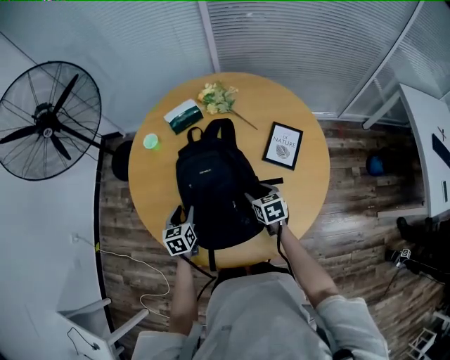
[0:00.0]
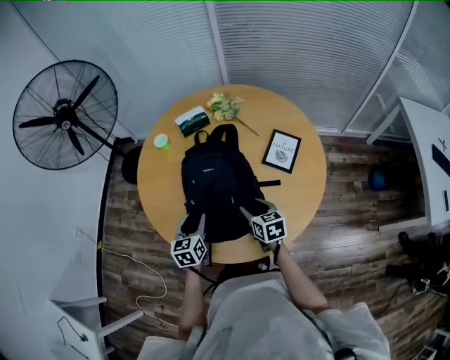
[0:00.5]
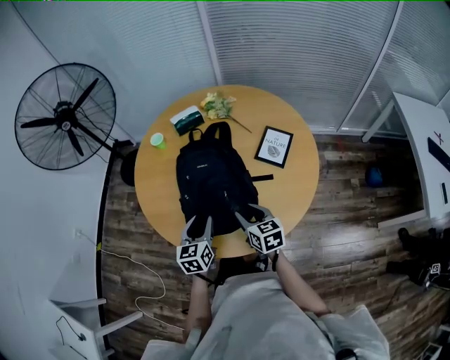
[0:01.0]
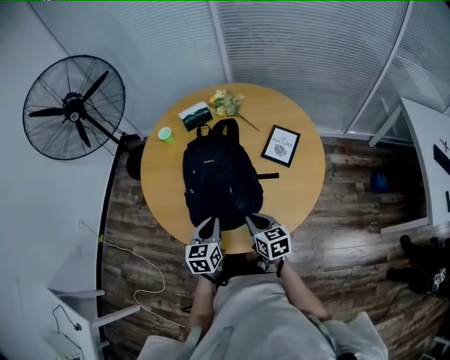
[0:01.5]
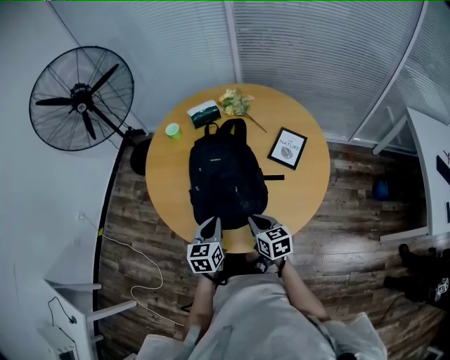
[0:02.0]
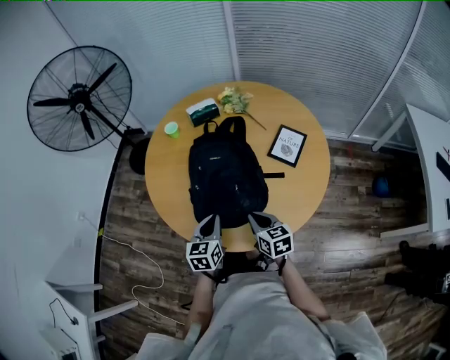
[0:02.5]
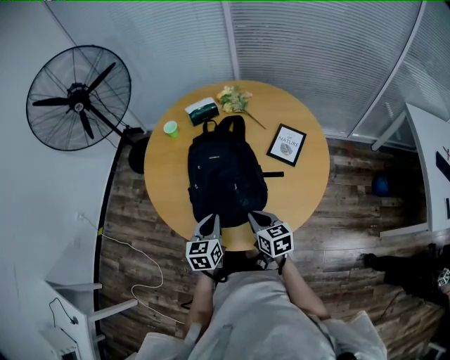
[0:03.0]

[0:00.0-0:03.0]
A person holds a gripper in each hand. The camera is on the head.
0:00.0 to 0:01.5: The left gripper moves backward, to the right and upward, about 20 cm, and closes up; the right gripper goes roughly 20 cm backward and upward, and closes its fingers.
0:01.5 to 0:03.0: The grippers stay close to where they were, moving slightly.

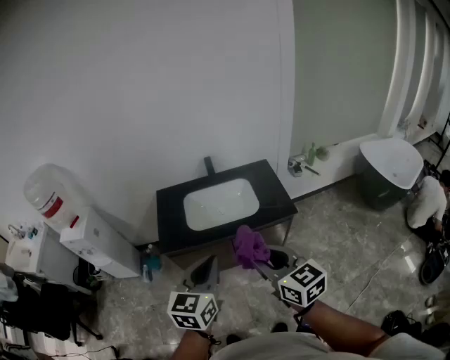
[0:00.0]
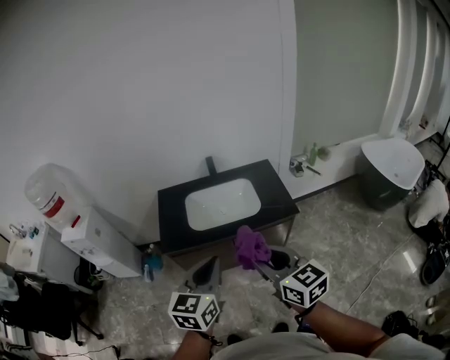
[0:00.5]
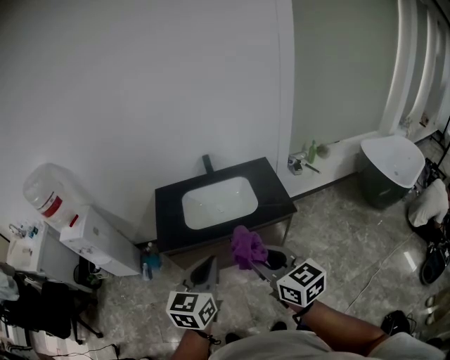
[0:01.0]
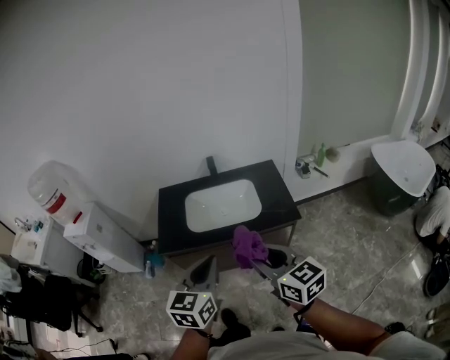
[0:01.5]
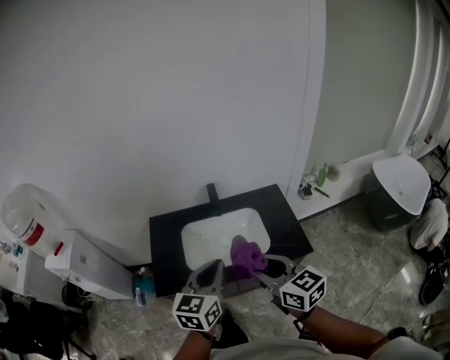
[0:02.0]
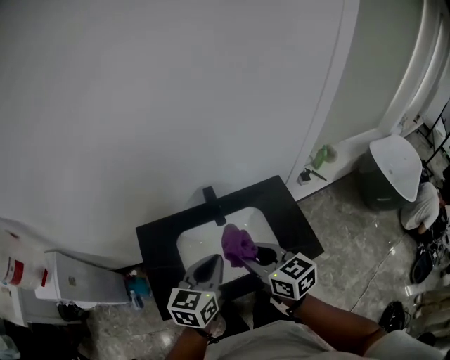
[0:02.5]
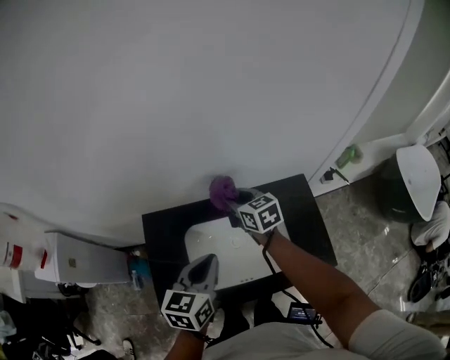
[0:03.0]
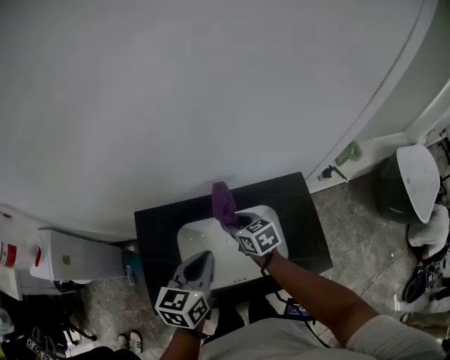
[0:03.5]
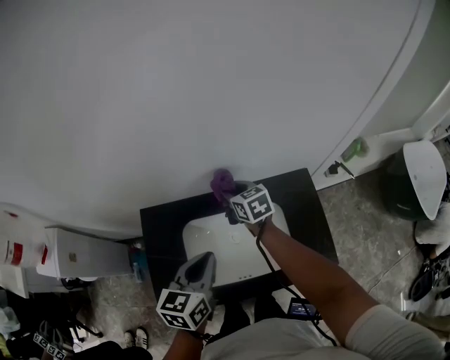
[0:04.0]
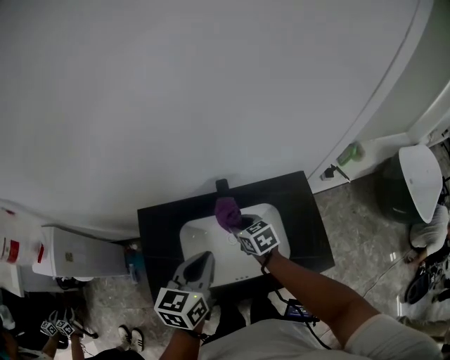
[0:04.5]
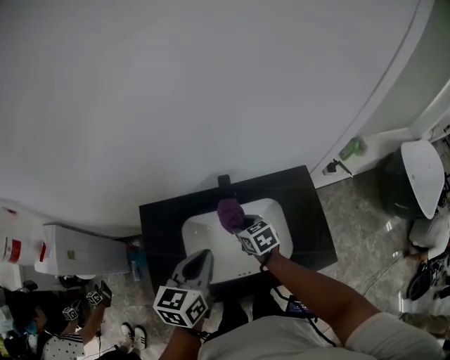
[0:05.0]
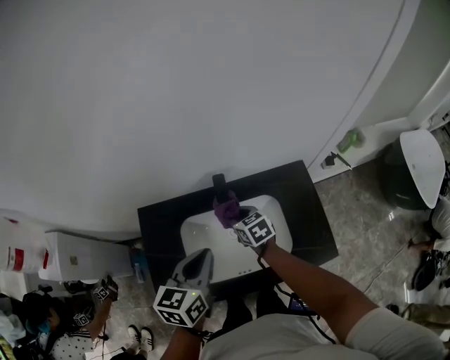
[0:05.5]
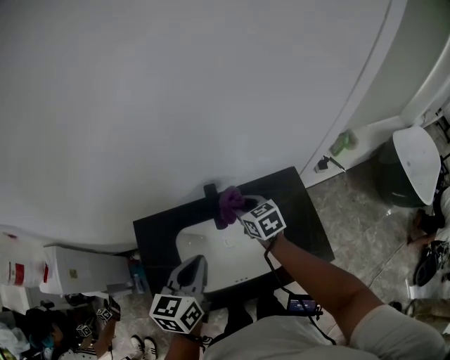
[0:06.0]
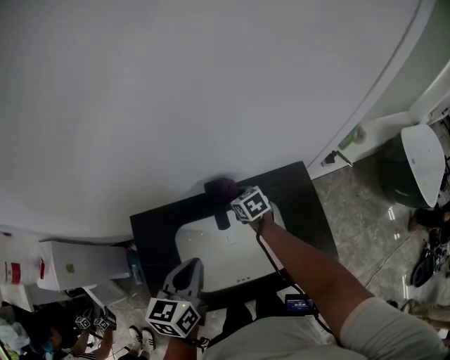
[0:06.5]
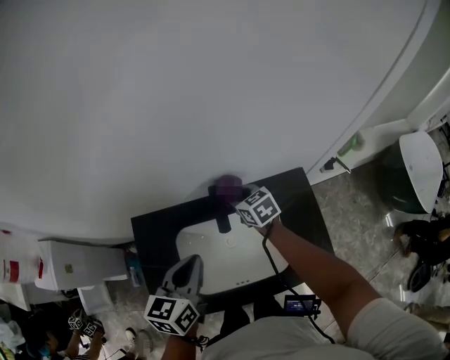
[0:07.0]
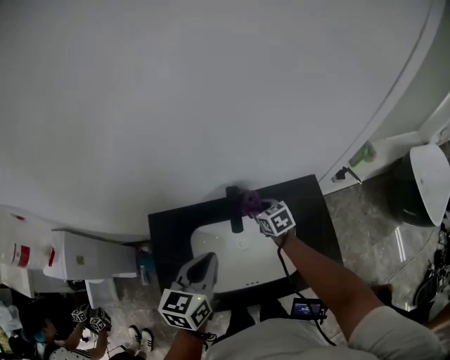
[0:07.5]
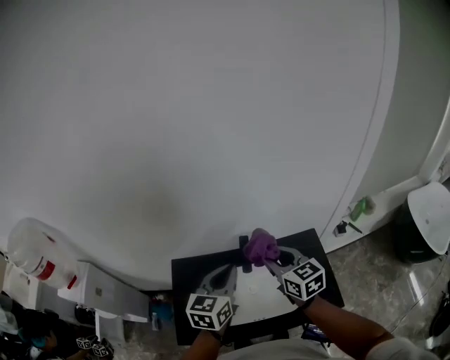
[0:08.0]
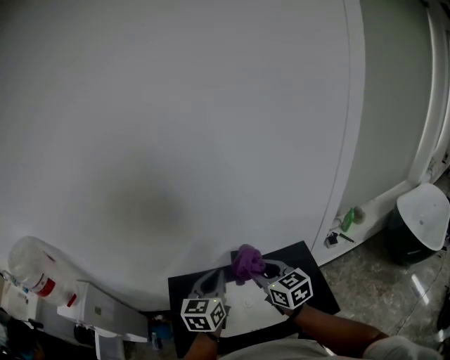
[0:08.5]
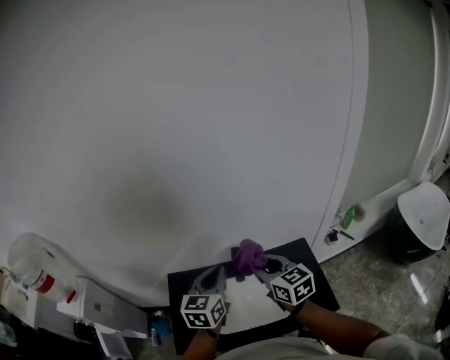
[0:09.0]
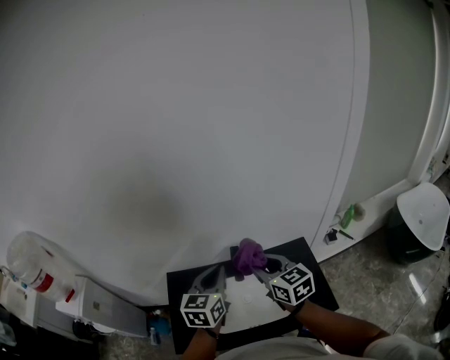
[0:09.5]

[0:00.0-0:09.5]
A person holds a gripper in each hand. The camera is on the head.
0:00.0 to 0:02.0: The two grippers go about 25 cm forward.
0:02.0 to 0:04.0: The left gripper shifts about 25 cm forward; the right gripper moves forward and backward over about 50 cm, changing direction 2 times, and swivels some 20 degrees.
0:04.0 to 0:05.5: The right gripper travels backward and downward by approximately 10 cm.
0:05.5 to 0:07.5: The right gripper goes up and down, roughly 10 cm each way, reversing 3 times.
0:07.5 to 0:09.5: The right gripper goes roughly 35 cm upward and backward, and swivels roughly 30 degrees. The left gripper shifts roughly 15 cm upward.

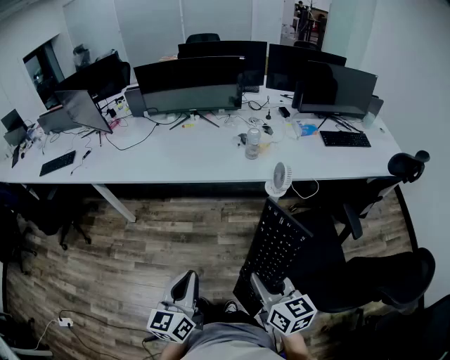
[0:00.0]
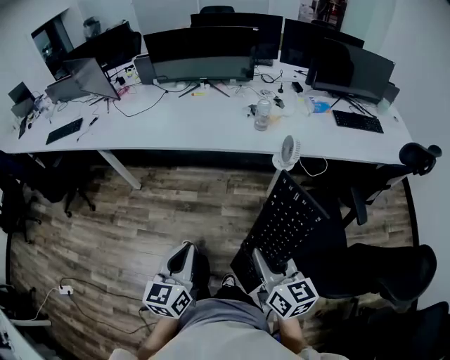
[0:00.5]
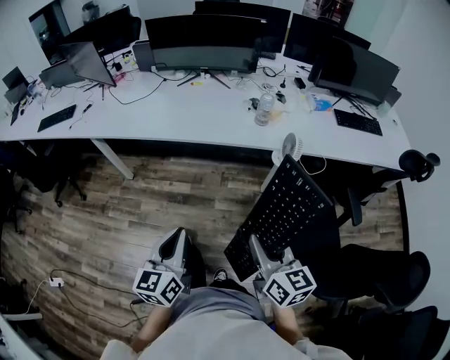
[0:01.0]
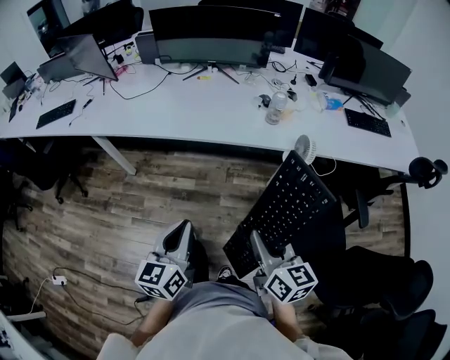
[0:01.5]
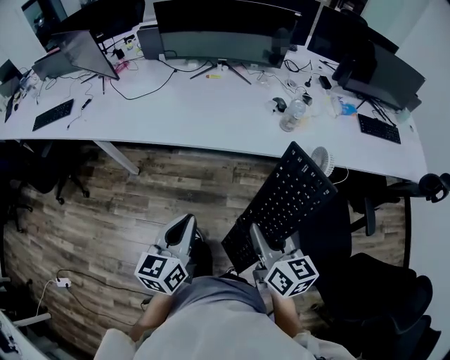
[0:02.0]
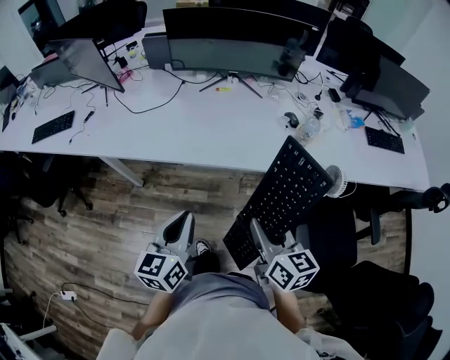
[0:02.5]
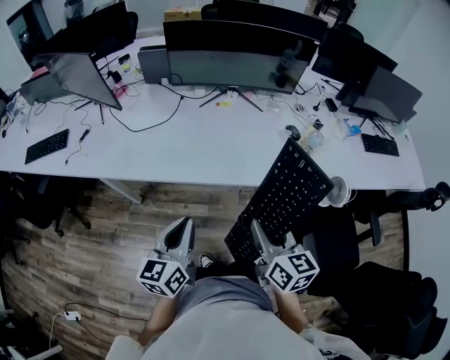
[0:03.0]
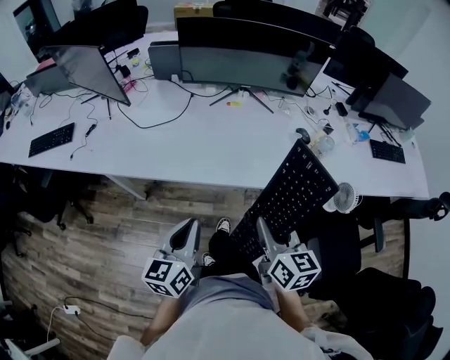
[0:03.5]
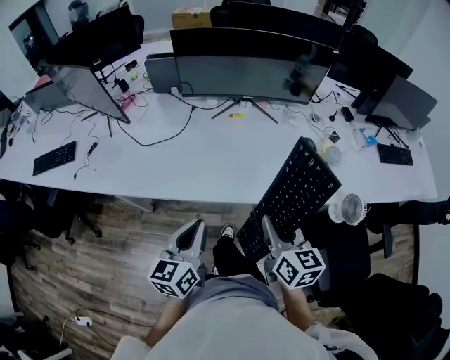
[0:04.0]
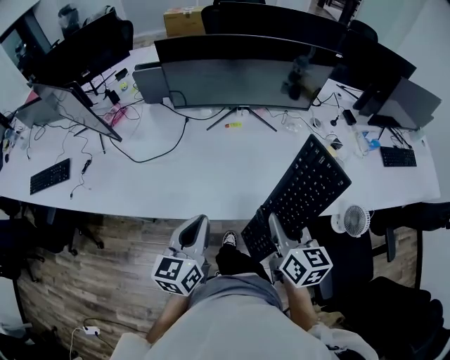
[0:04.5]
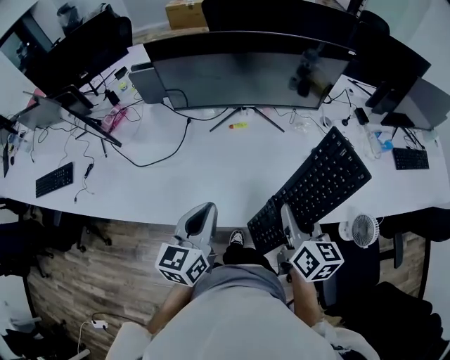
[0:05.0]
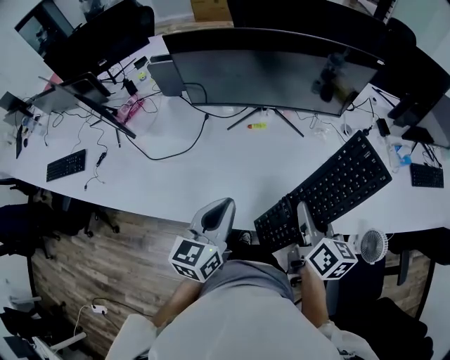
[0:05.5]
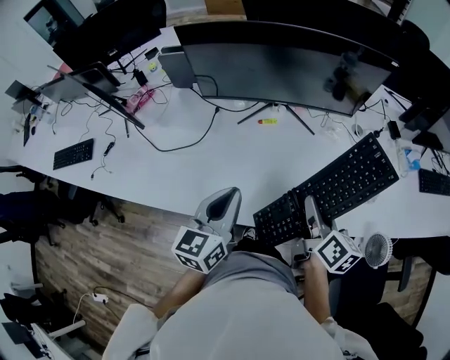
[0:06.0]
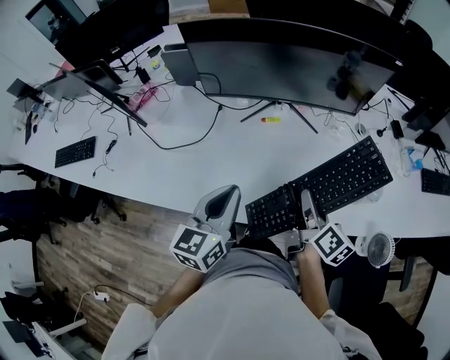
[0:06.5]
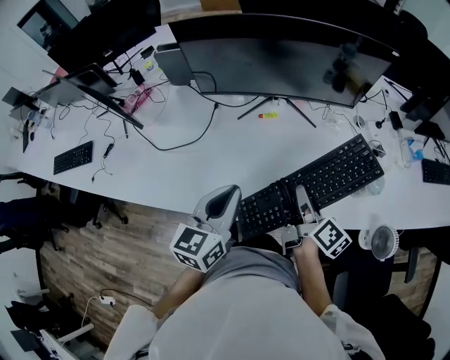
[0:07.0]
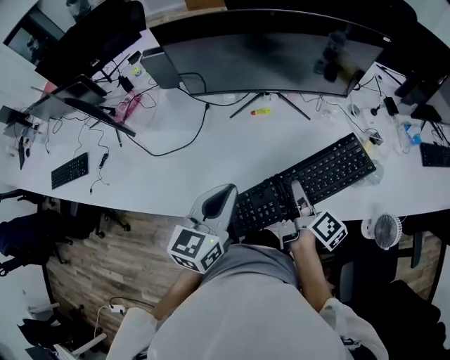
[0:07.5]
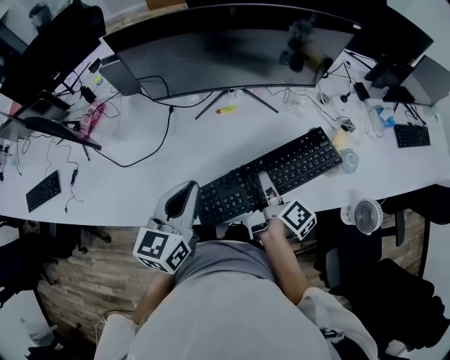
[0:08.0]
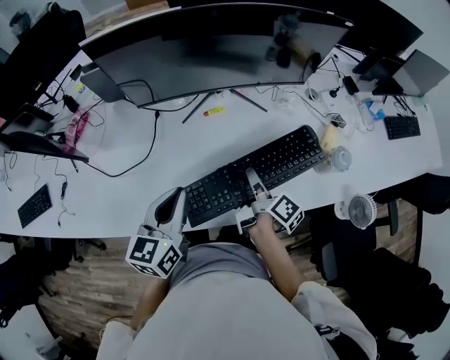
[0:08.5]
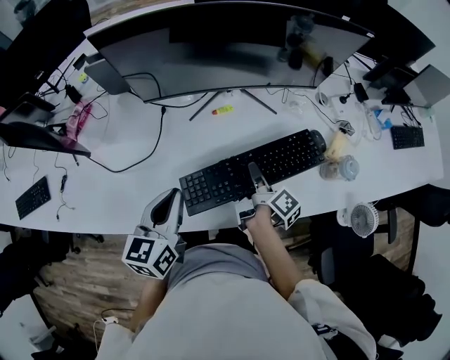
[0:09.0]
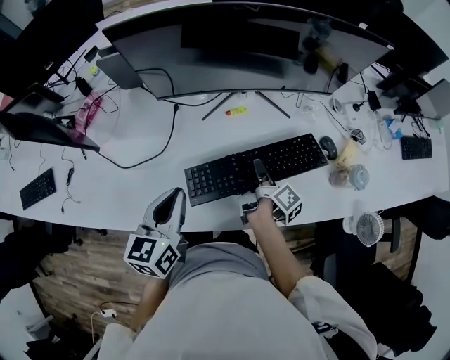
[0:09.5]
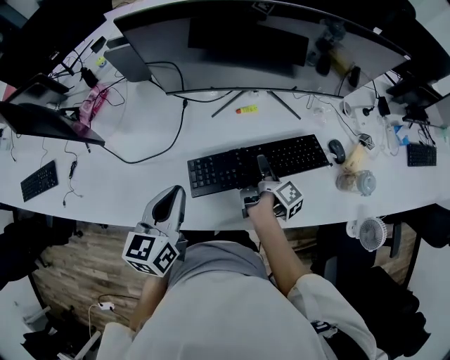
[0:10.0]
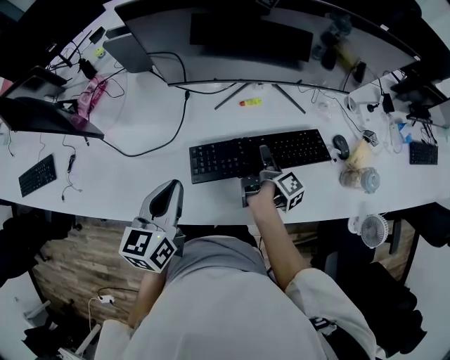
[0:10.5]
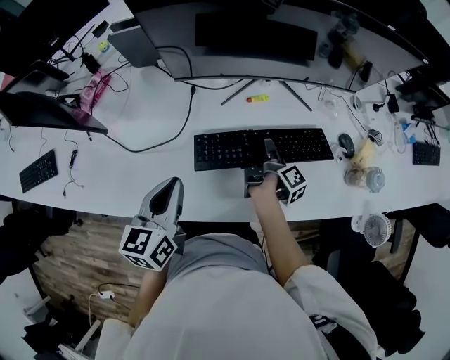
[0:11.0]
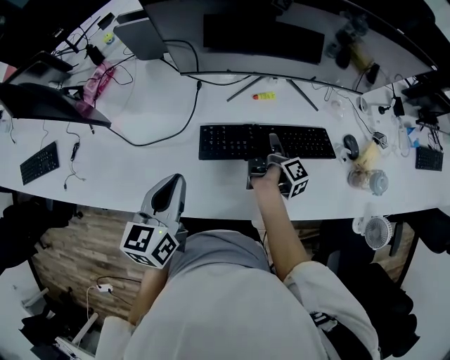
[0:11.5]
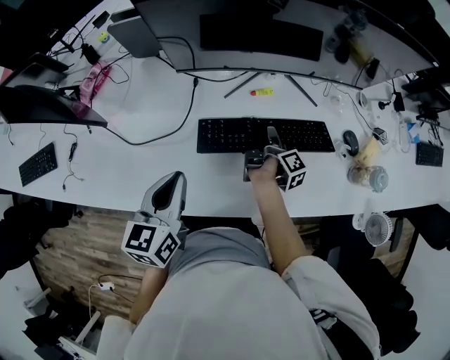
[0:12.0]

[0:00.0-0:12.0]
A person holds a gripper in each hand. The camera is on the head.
0:00.0 to 0:02.0: The two grippers go about 20 cm forward and to the left.
0:02.0 to 0:04.0: The grippers both shift forward and to the left by some 30 cm.
0:04.0 to 0:06.0: Both grippers travel together forward, about 20 cm. The right gripper turns by approximately 20 degrees.
0:06.0 to 0:08.0: The right gripper heads downward, covering some 10 cm, and turns by some 30 degrees.
0:08.0 to 0:10.0: The left gripper goes about 10 cm to the left, while the right gripper travels forward, downward and to the left by roughly 15 cm.
0:10.0 to 0:12.0: The right gripper moves downward, some 5 cm.

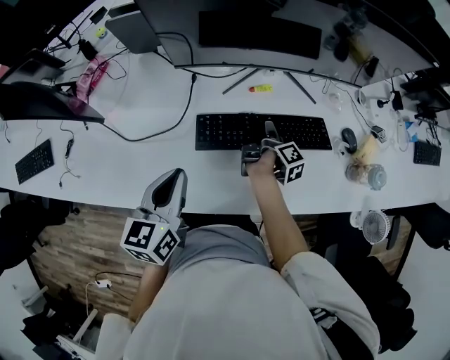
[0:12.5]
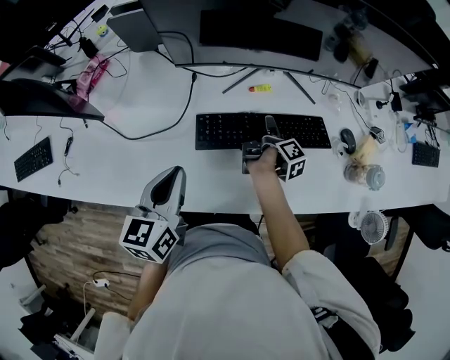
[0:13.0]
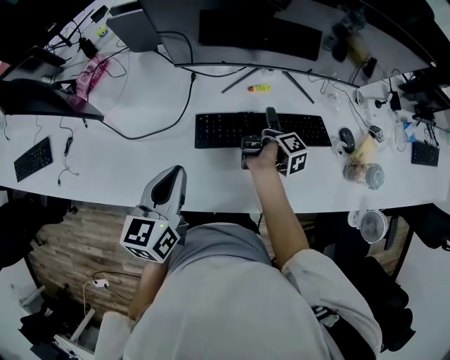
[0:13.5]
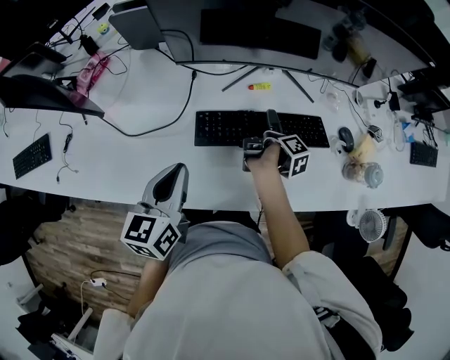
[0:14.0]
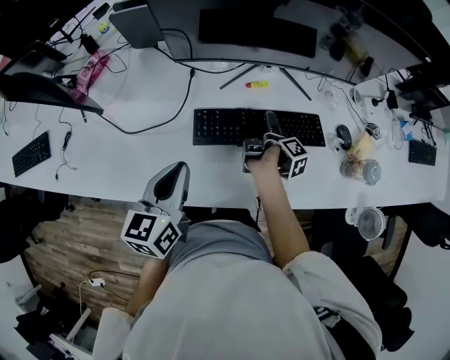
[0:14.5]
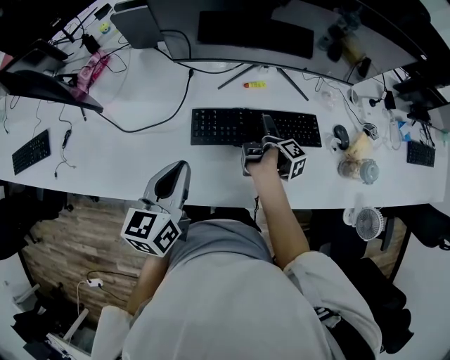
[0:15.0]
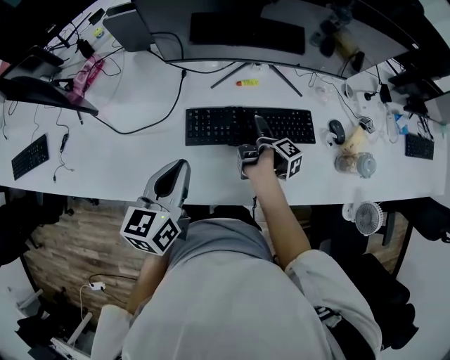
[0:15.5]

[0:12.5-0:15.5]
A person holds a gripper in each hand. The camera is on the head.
0:12.5 to 0:14.0: The right gripper opens up.
0:14.0 to 0:15.5: The grippers stay close to where they were, moving slightly.
